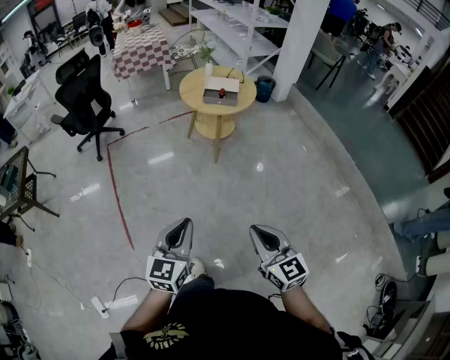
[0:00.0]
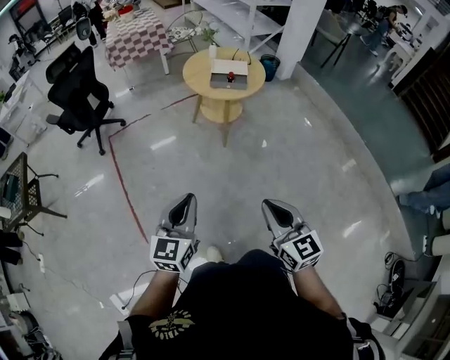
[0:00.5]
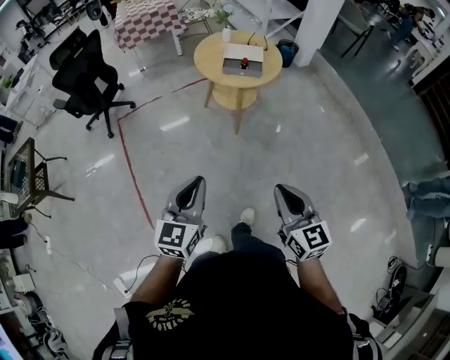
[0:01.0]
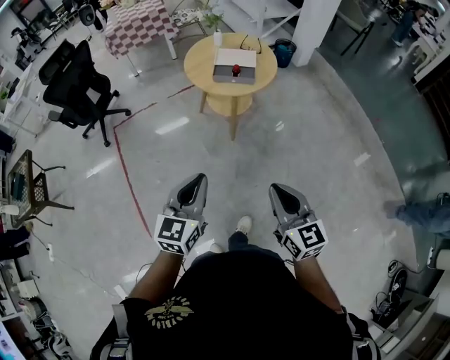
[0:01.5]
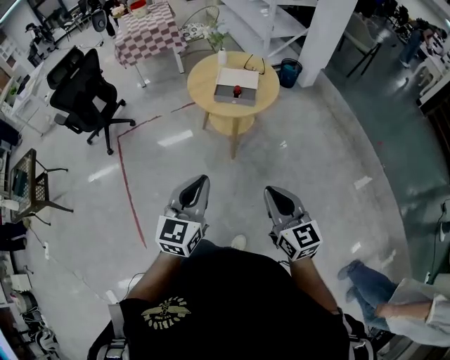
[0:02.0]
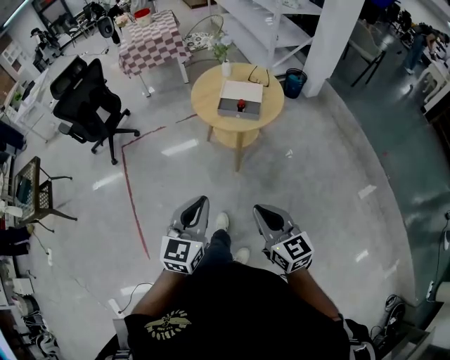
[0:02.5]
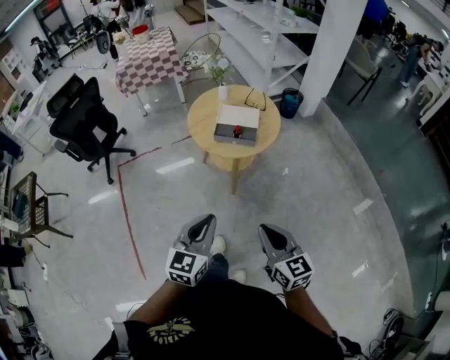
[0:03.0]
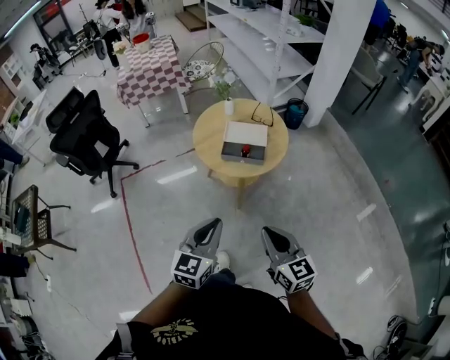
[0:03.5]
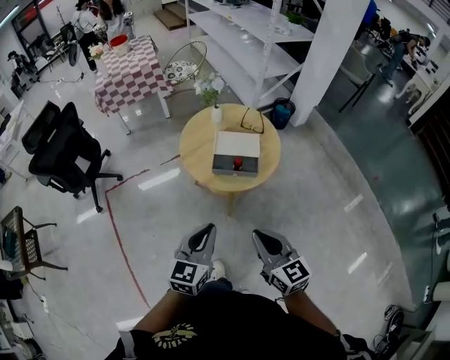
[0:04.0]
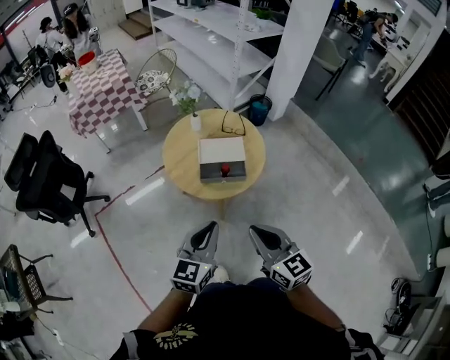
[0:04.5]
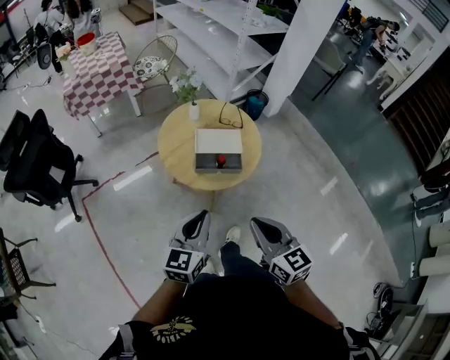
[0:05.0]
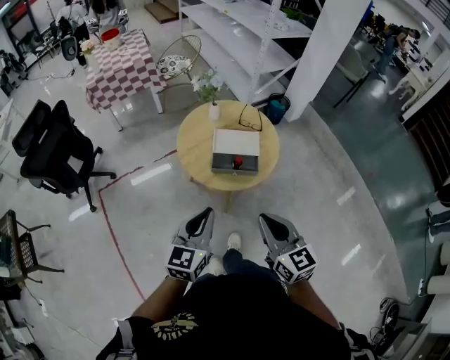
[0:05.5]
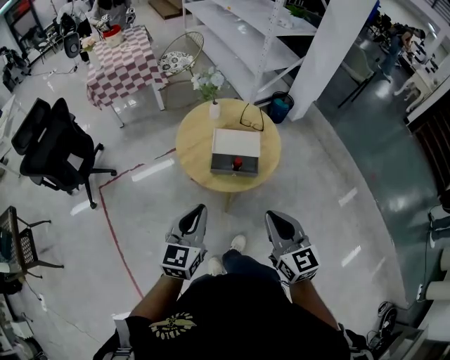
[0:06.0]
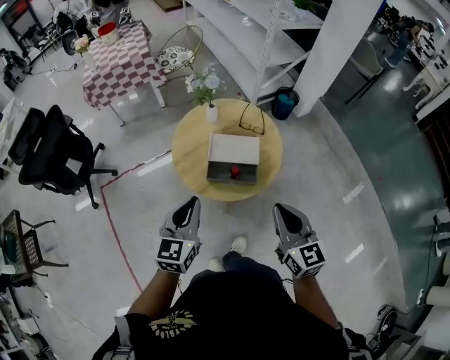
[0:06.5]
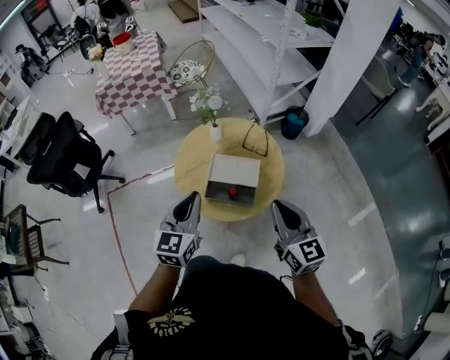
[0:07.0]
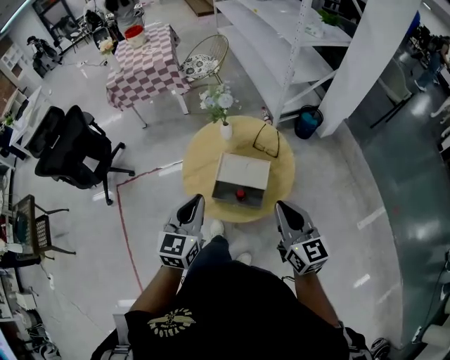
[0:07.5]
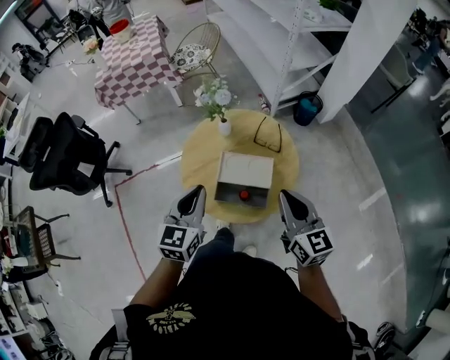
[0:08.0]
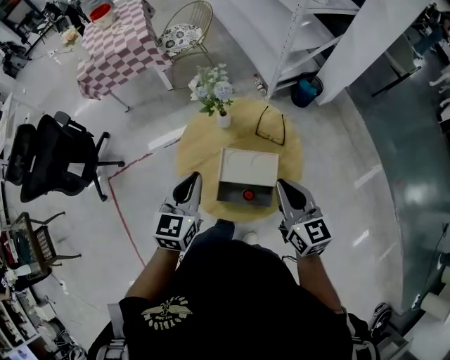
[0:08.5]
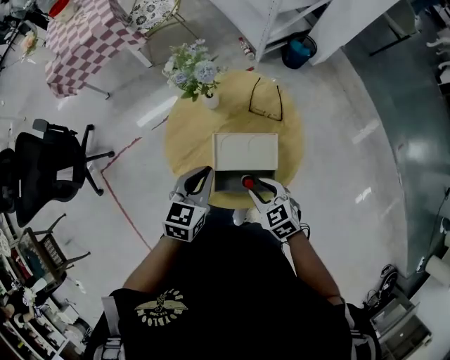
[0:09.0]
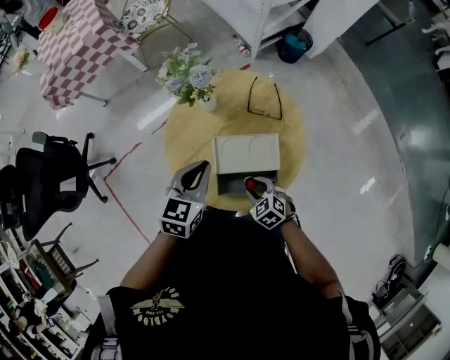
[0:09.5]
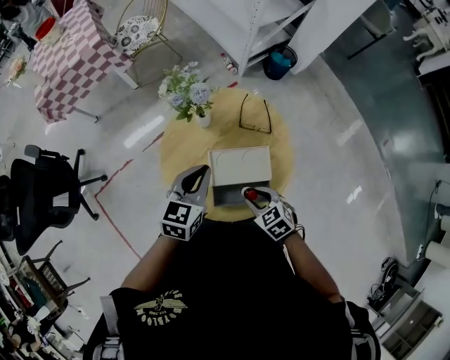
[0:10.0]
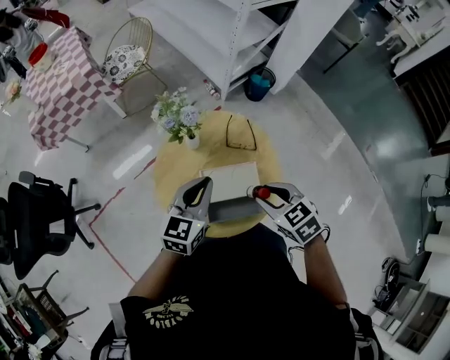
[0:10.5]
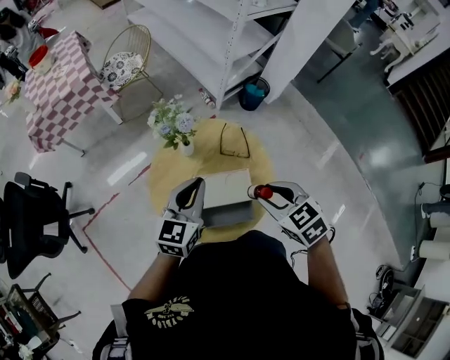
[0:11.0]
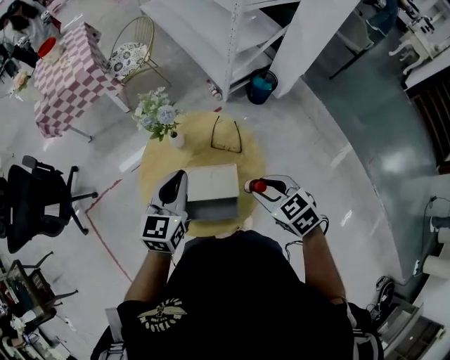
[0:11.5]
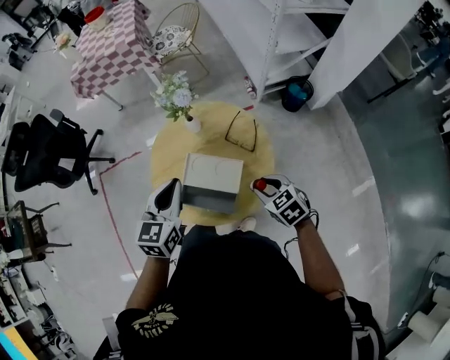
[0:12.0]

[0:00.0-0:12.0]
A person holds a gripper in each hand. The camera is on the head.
0:00.0 to 0:02.0: Both grippers move forward, some 35 cm.
0:02.0 to 0:04.0: The two grippers go some 25 cm forward.
0:04.0 to 0:06.0: The two grippers go about 10 cm forward.
0:06.0 to 0:08.0: Both grippers move forward, about 25 cm.
0:08.0 to 0:10.0: The right gripper moves downward, approximately 25 cm, angles its fingers downward, by roughly 50 degrees, and opens, while the left gripper heads forward and downward, covering roughly 20 cm, and rotates some 30 degrees.
0:10.0 to 0:12.0: The left gripper changes place by some 15 cm, and swivels some 30 degrees. Meanwhile the right gripper moves approximately 20 cm upward and comes back.

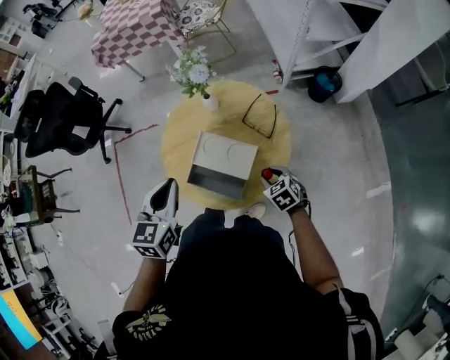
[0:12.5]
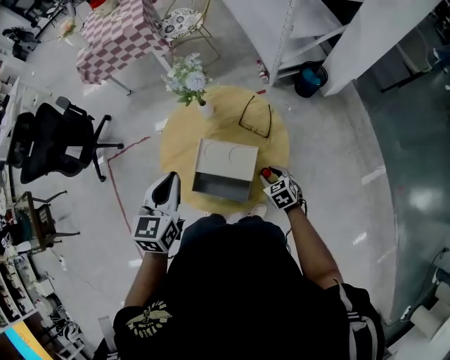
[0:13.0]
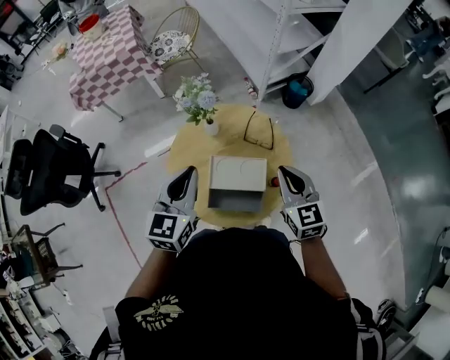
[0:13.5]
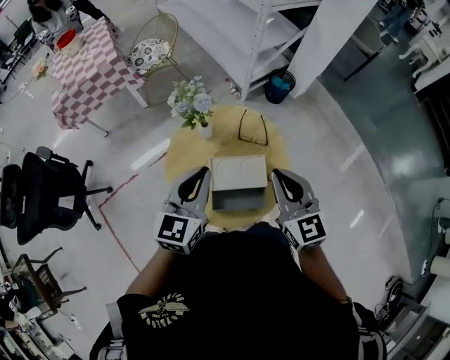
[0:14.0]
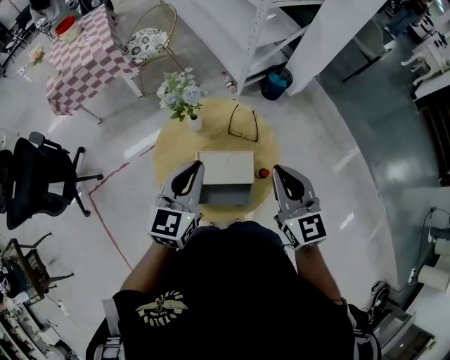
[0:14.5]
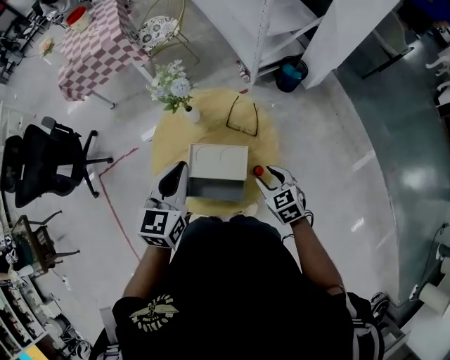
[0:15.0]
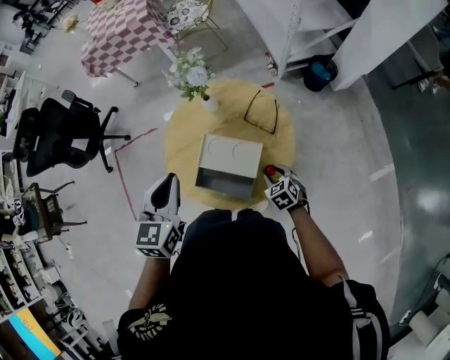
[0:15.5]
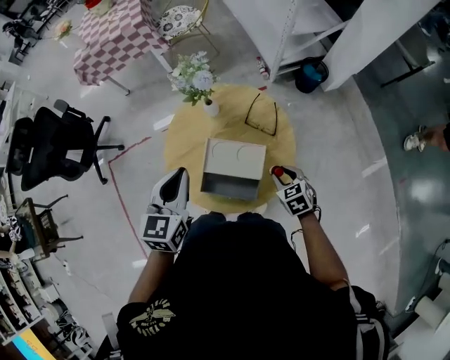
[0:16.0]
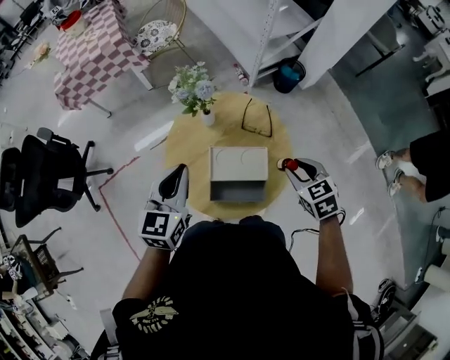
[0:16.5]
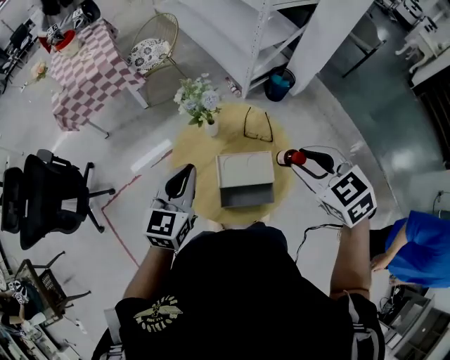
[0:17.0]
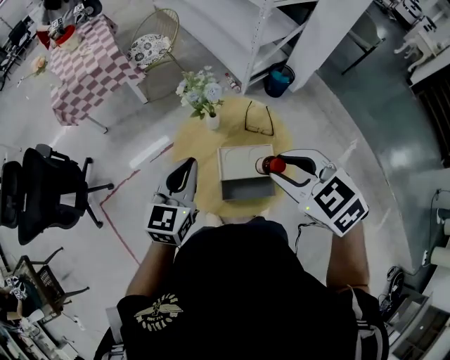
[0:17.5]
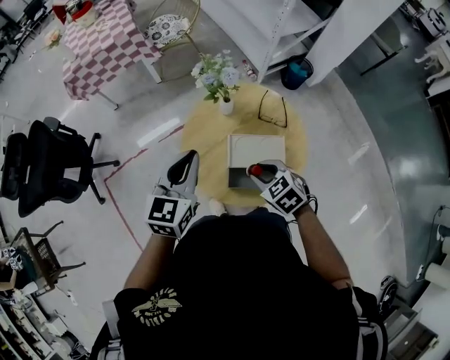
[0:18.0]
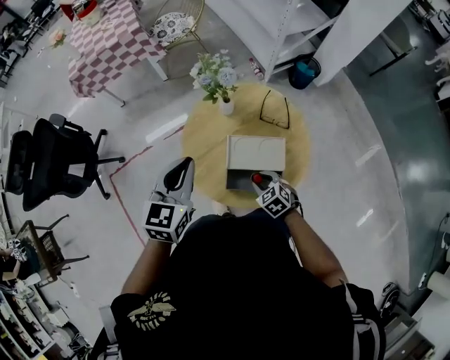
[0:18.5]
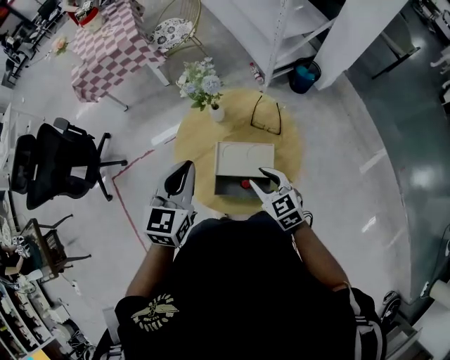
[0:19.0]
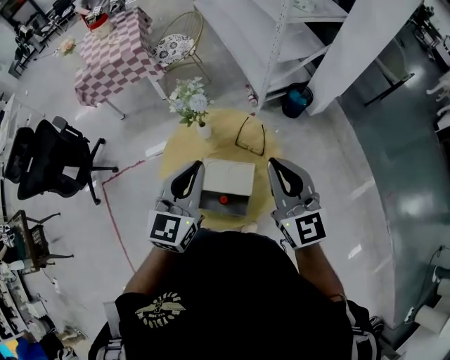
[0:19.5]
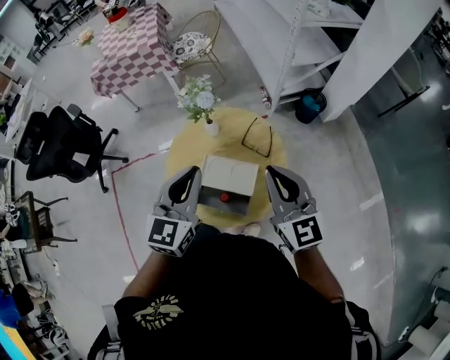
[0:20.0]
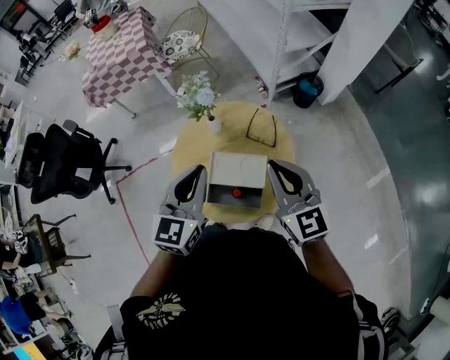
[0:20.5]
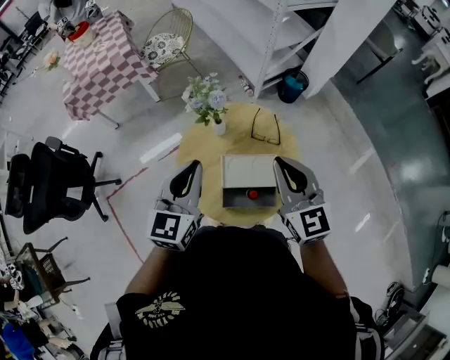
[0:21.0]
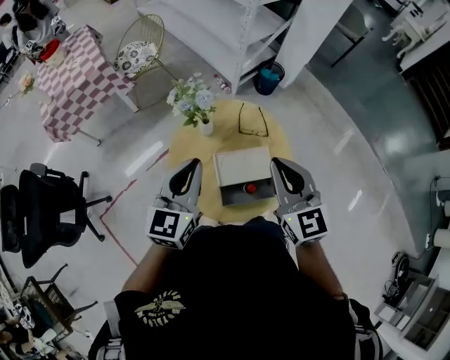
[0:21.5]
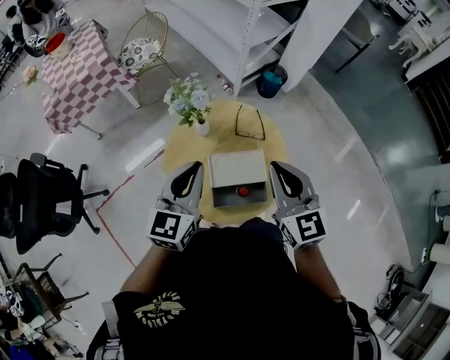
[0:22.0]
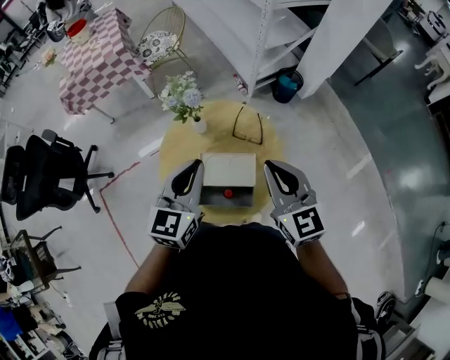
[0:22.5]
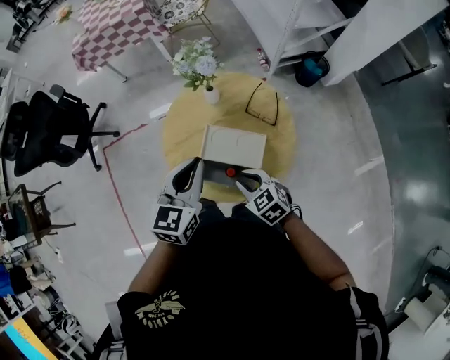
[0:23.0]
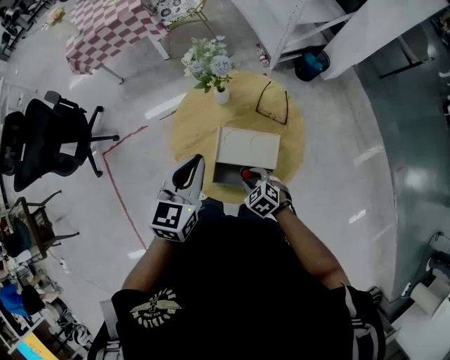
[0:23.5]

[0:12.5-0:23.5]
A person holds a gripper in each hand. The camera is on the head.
0:12.5 to 0:14.5: The right gripper is displaced upward by roughly 35 cm, points its fingers approximately 40 degrees further upward, and closes up. Meanwhile the left gripper ends up about 10 cm from where it was, and rotates approximately 30 degrees.
0:14.5 to 0:16.0: The left gripper ends up some 5 cm from where it was, and changes its angle by about 20 degrees. Meanwhile the right gripper shifts approximately 30 cm downward, tilts its fingers some 40 degrees downward, and opens its fingers.
0:16.0 to 0:18.0: The right gripper travels to the left by some 20 cm, and travels upward and back again, roughly 35 cm each way. The left gripper goes some 10 cm to the left.
0:18.0 to 0:20.0: The right gripper travels upward and to the right by roughly 30 cm, points its fingers roughly 50 degrees further upward, and closes, while the left gripper moves to the right, approximately 20 cm.
0:20.0 to 0:21.5: The left gripper moves about 15 cm, and changes its angle by about 20 degrees. The right gripper shifts by some 15 cm, and swivels approximately 30 degrees.
0:21.5 to 0:23.5: The right gripper heads downward, covering about 35 cm, tilts its fingers approximately 50 degrees downward, and opens up; the left gripper travels downward by roughly 10 cm, and rotates approximately 20 degrees.

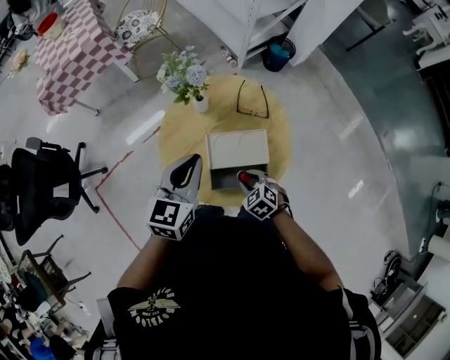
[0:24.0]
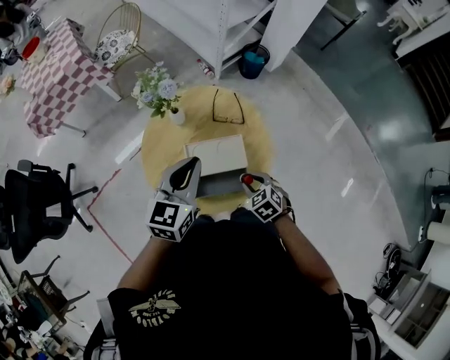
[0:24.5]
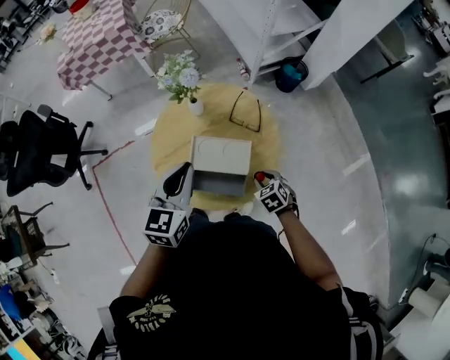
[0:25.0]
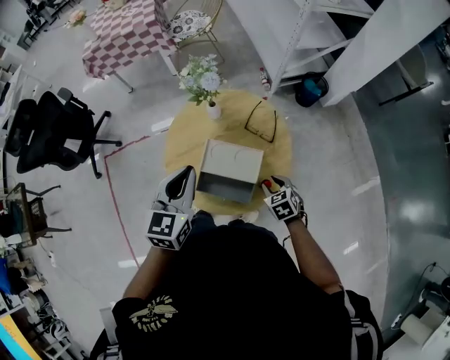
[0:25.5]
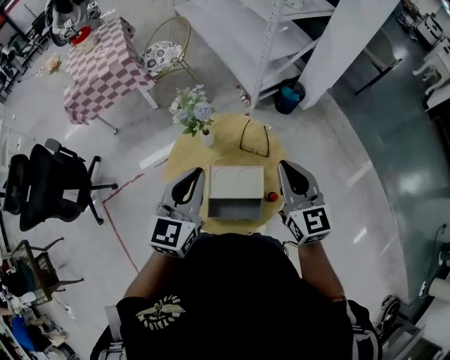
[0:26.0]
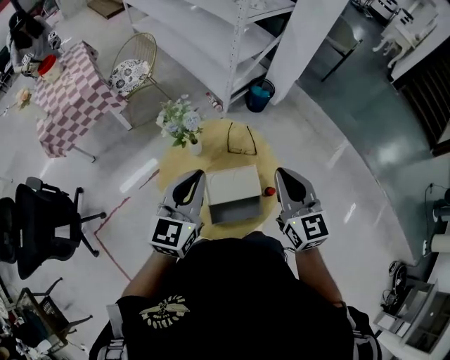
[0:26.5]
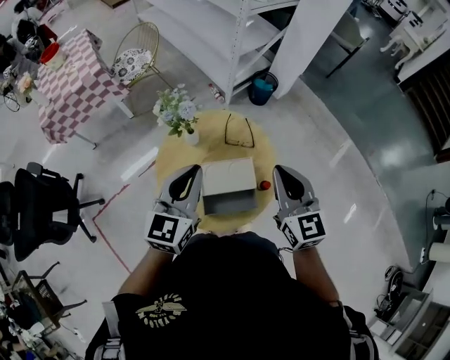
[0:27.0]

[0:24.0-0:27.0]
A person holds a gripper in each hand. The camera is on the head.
0:24.0 to 0:25.5: The right gripper is displaced to the right by roughly 15 cm, while the left gripper shifts about 5 cm backward, and changes its angle by about 20 degrees.
0:25.5 to 0:27.0: The right gripper shifts some 35 cm upward, angles its fingers upward, by about 40 degrees, and closes; the left gripper is displaced upward by some 5 cm, and rotates roughly 30 degrees.
